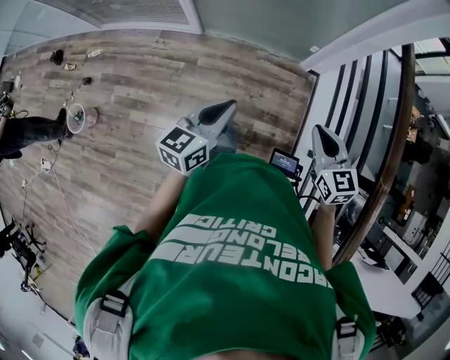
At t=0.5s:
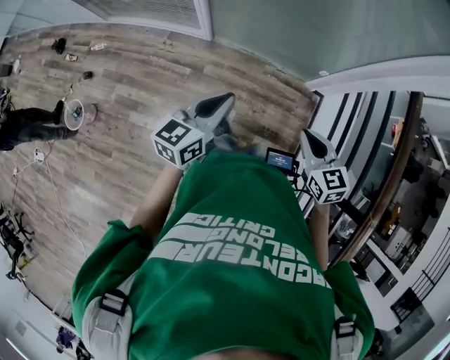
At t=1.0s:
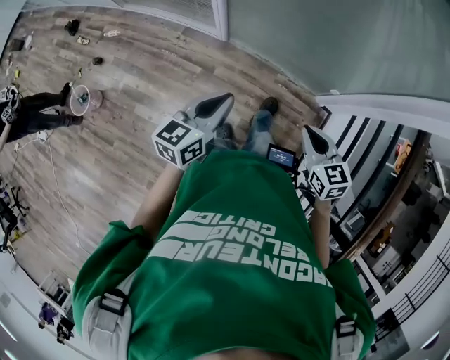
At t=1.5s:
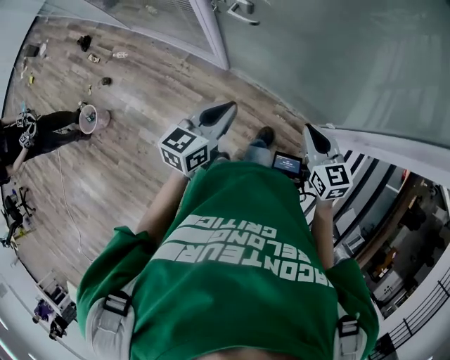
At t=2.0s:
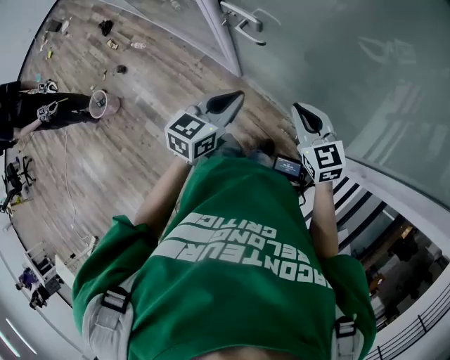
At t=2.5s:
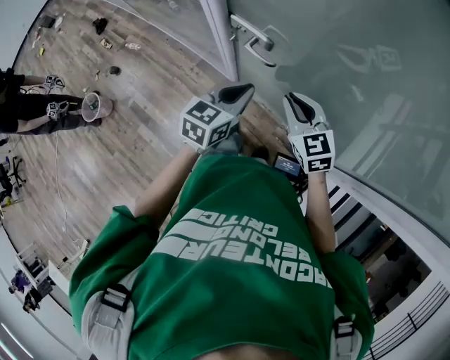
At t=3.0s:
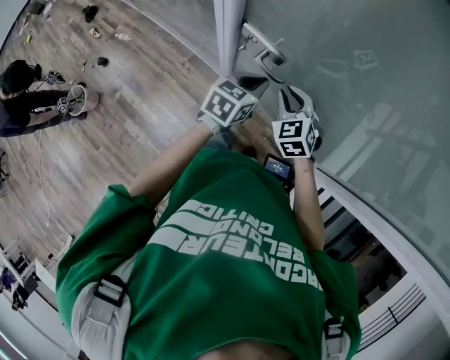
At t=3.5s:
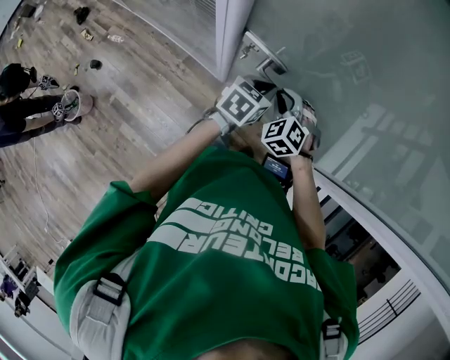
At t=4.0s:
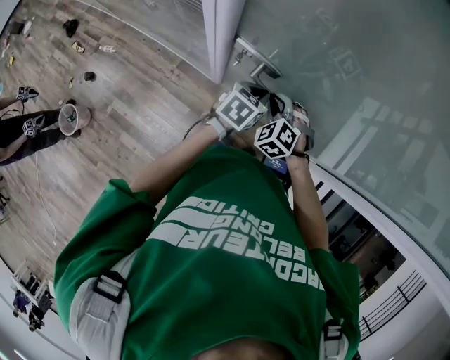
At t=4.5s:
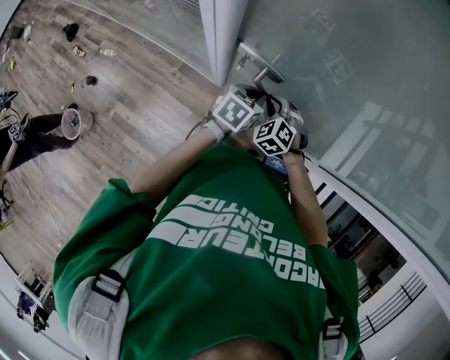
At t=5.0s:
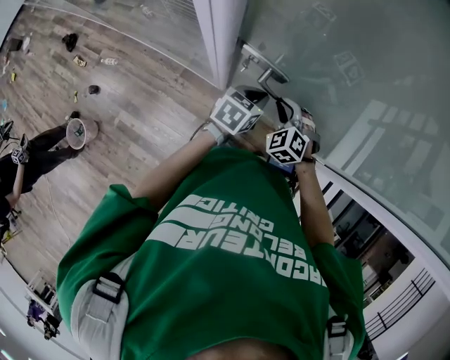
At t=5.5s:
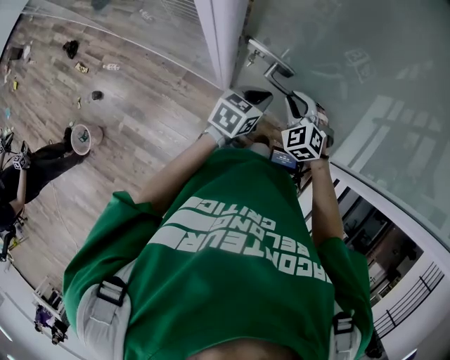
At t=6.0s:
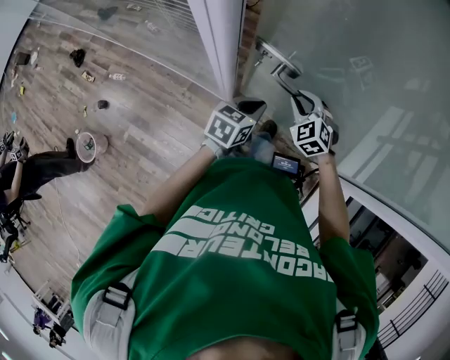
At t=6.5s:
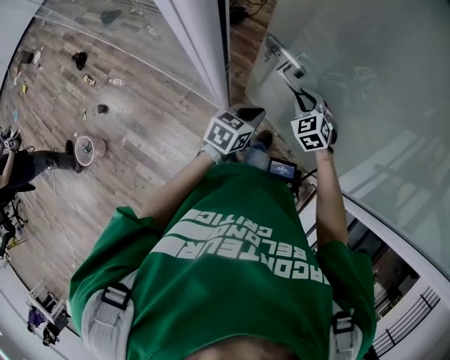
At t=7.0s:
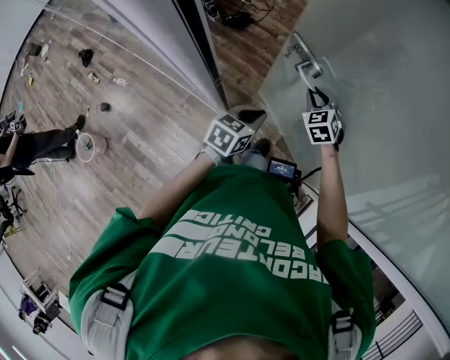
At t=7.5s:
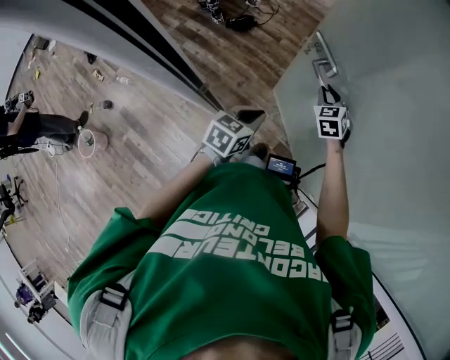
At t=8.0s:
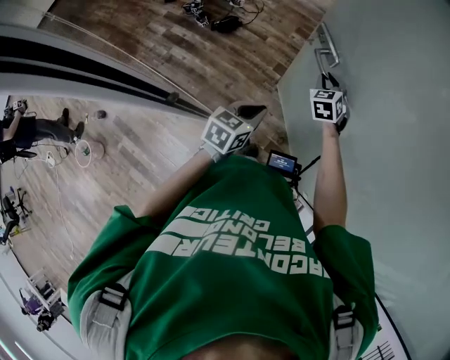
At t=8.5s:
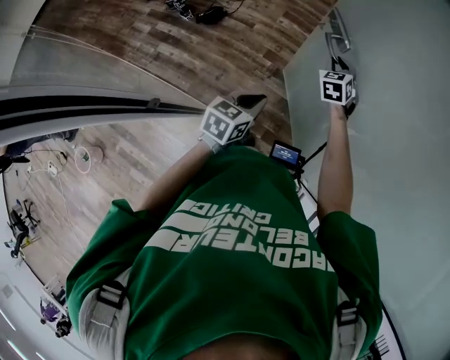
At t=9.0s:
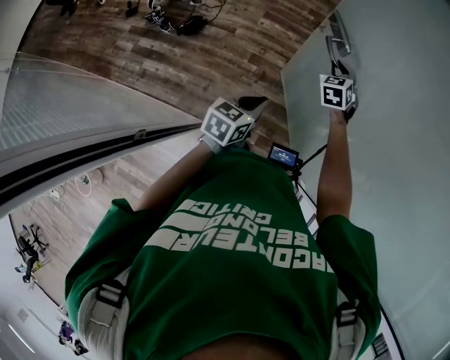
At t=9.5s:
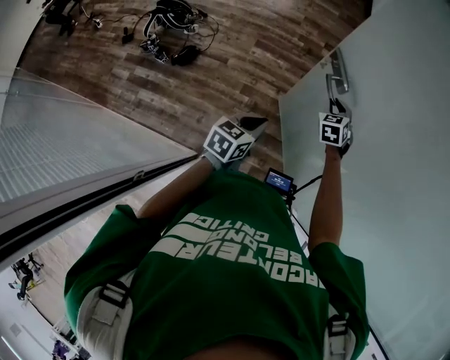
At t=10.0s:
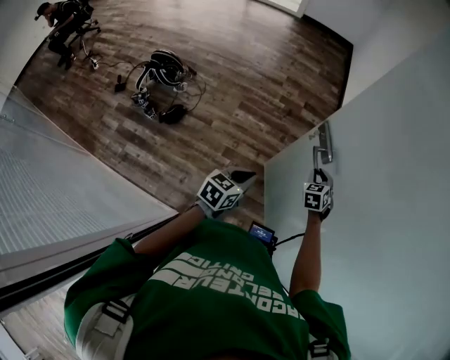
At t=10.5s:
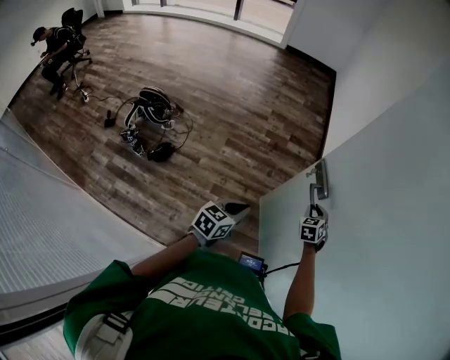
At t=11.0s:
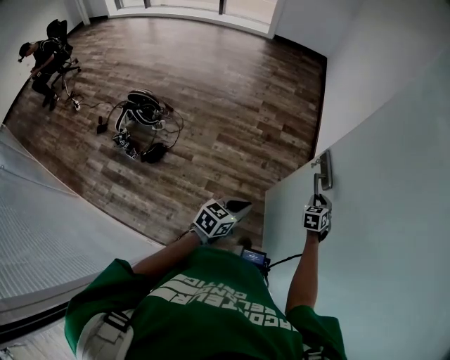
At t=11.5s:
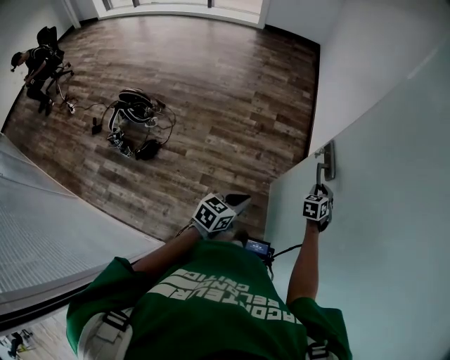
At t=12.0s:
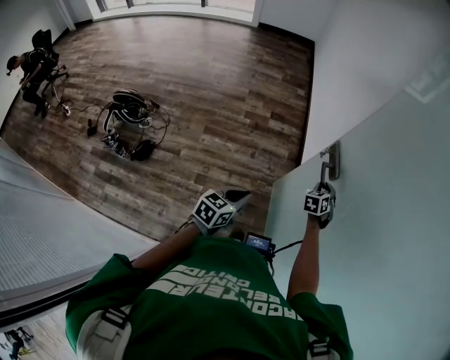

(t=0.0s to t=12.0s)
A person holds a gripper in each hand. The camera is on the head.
t=0.0s - t=2.0s: Both grippers are carried about 50 cm. The left gripper turns by about 20 degrees. Meanwhile the right gripper swivels some 40 degrees.
t=2.0s - t=4.0s: The left gripper changes place by approximately 20 cm, and changes its angle by some 30 degrees. The right gripper moves some 25 cm, and changes its angle by roughly 50 degrees.
t=4.0s - t=6.0s: The right gripper goes approximately 10 cm forward.
t=6.0s - t=8.0s: The right gripper is displaced forward and to the right by some 35 cm, and swivels approximately 30 degrees; the left gripper moves forward and to the right, roughly 20 cm.
t=8.0s - t=10.0s: The left gripper shifts by roughly 10 cm, and changes its angle by roughly 20 degrees. The right gripper moves about 15 cm, and swivels some 30 degrees.
t=10.0s - t=12.0s: The two grippers go about 20 cm forward and to the right. The right gripper rotates approximately 20 degrees.

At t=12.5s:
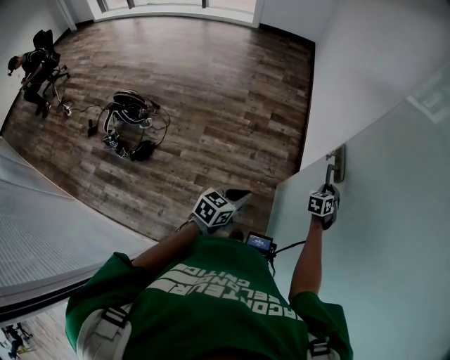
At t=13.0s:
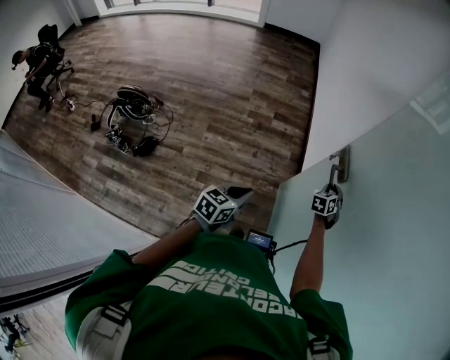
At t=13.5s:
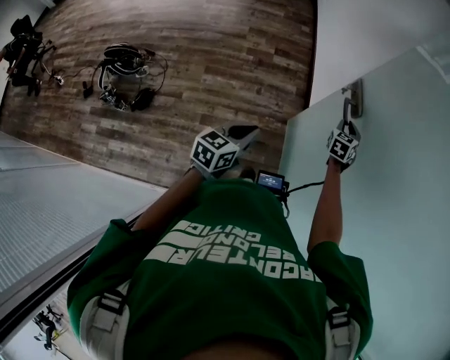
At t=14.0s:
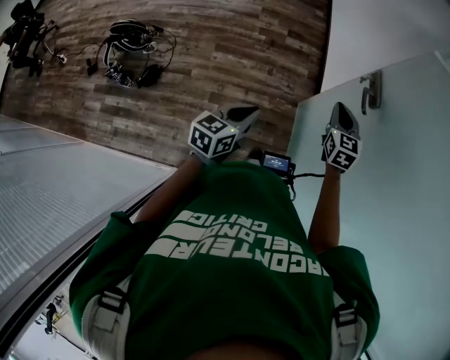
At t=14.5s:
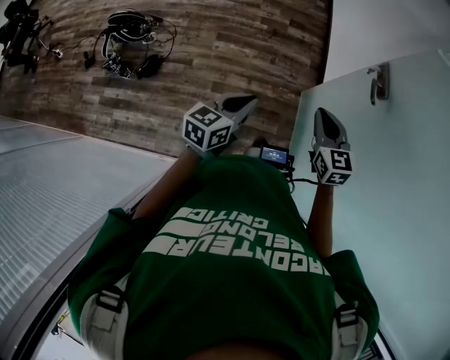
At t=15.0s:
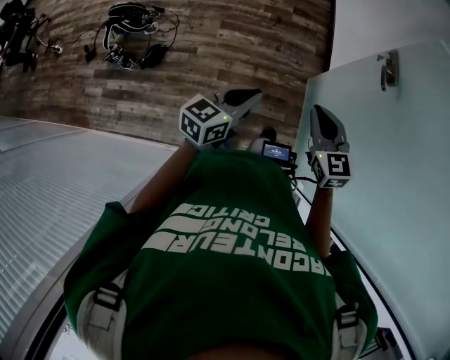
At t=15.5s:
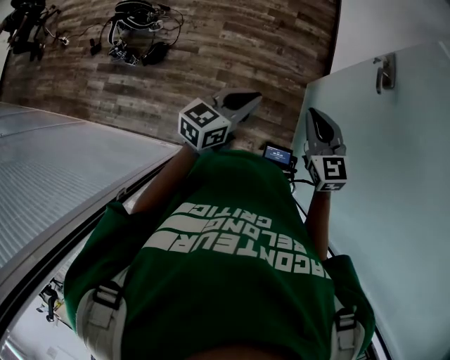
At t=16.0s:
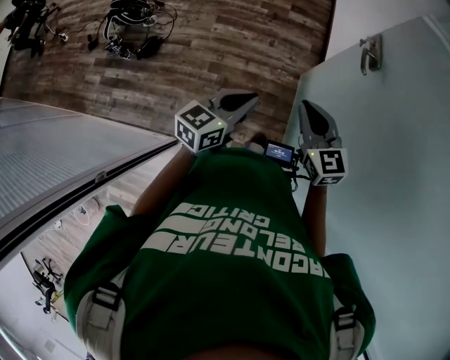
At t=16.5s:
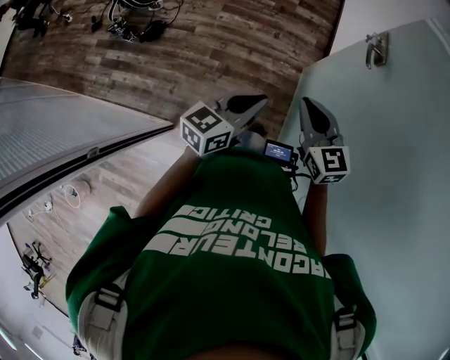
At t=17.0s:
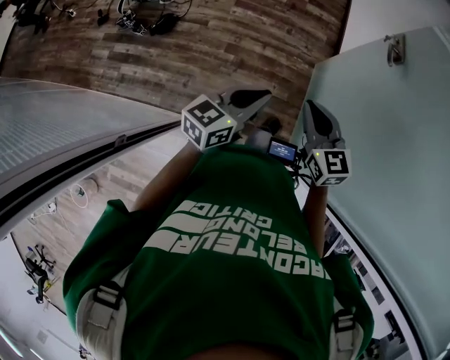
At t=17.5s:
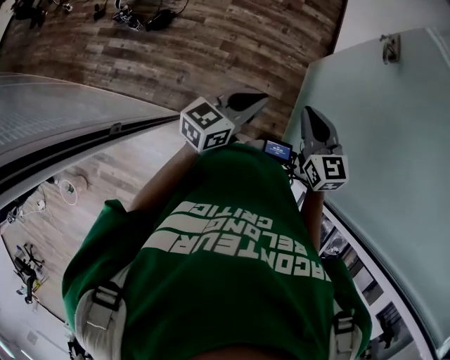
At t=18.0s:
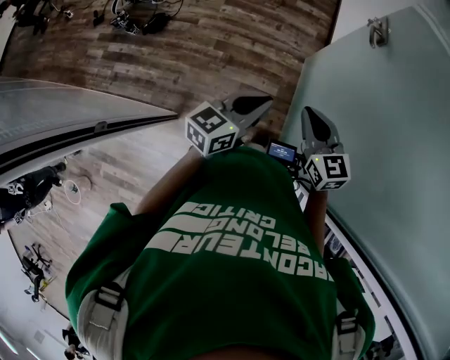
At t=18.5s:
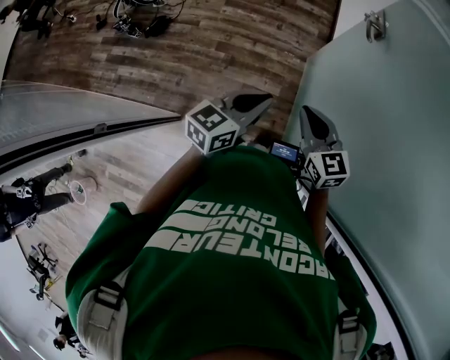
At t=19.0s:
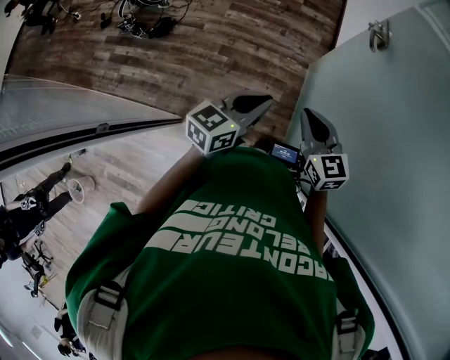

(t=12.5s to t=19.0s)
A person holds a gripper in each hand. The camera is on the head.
t=12.5s - t=14.5s: The right gripper changes place by approximately 35 cm, and changes its angle by approximately 50 degrees. The left gripper shifts by some 15 cm.
t=14.5s - t=17.0s: Both grippers travel together backward, roughly 20 cm.
t=17.0s - t=19.0s: The grippers both shift to the right by approximately 10 cm.

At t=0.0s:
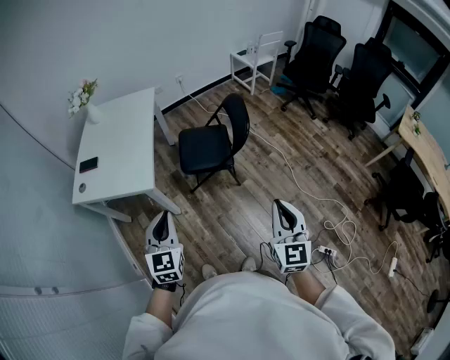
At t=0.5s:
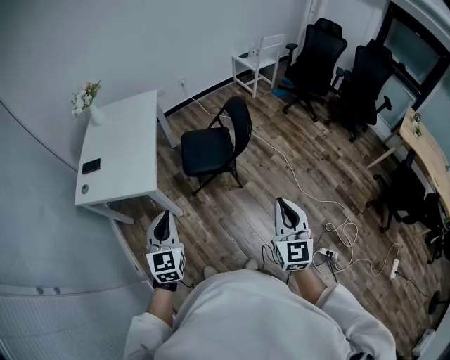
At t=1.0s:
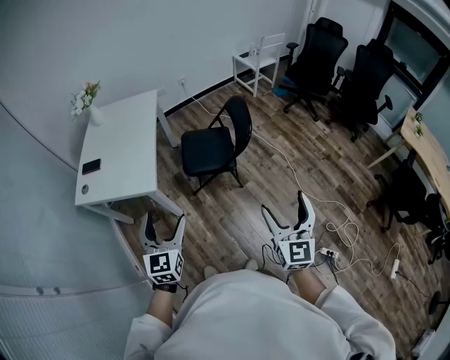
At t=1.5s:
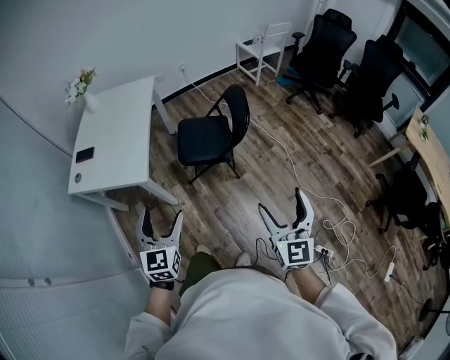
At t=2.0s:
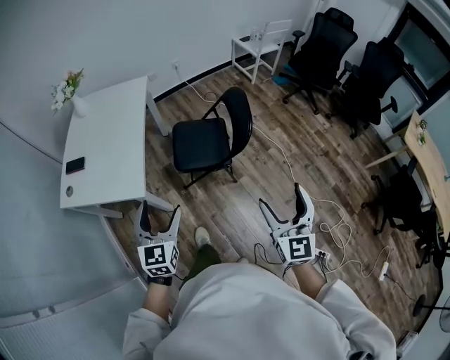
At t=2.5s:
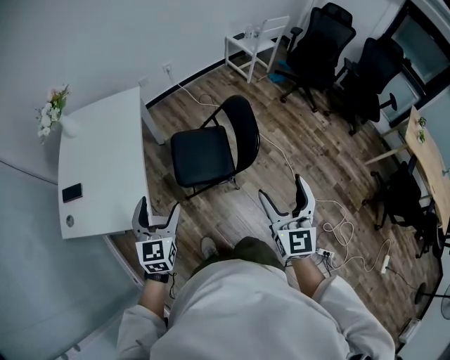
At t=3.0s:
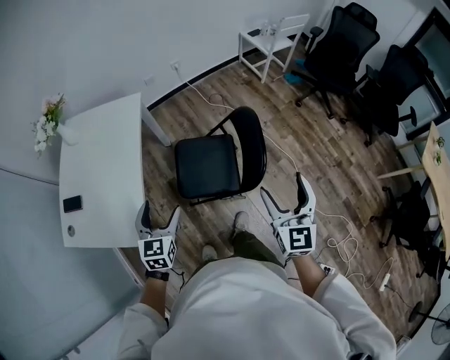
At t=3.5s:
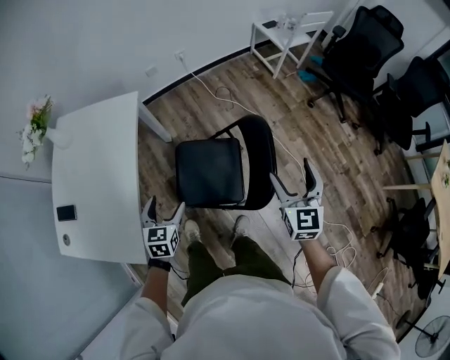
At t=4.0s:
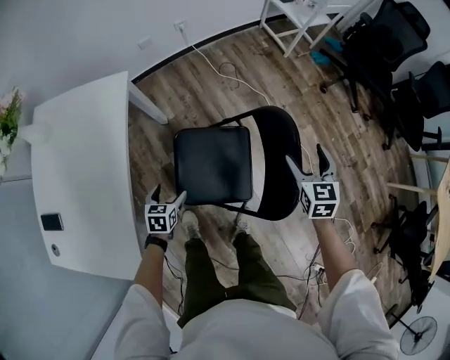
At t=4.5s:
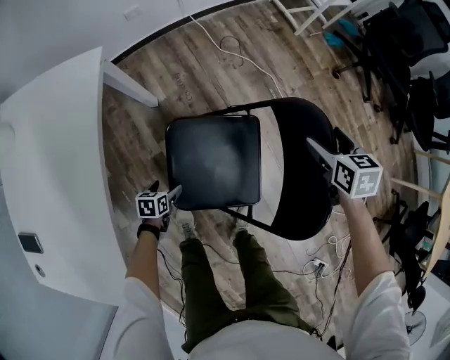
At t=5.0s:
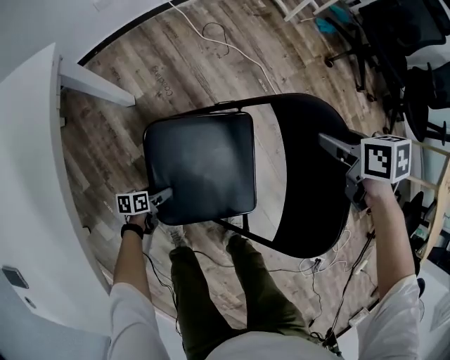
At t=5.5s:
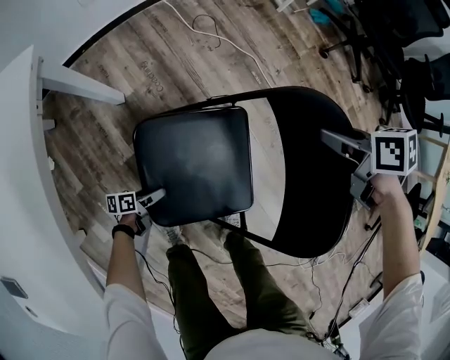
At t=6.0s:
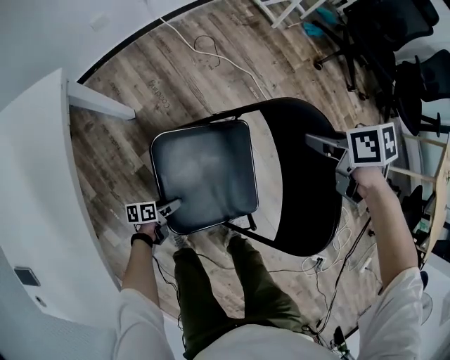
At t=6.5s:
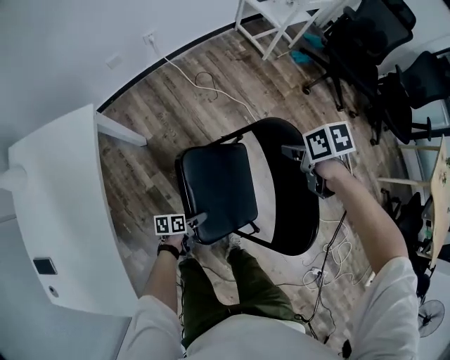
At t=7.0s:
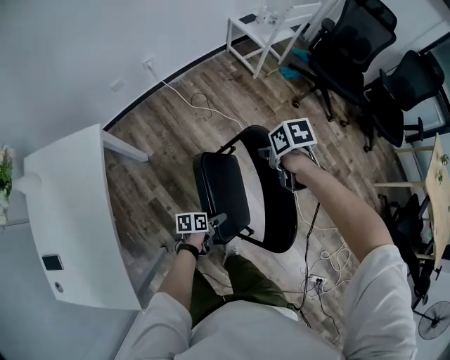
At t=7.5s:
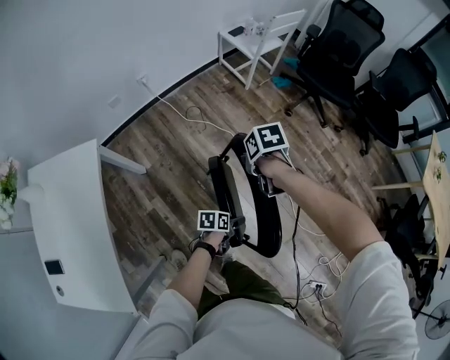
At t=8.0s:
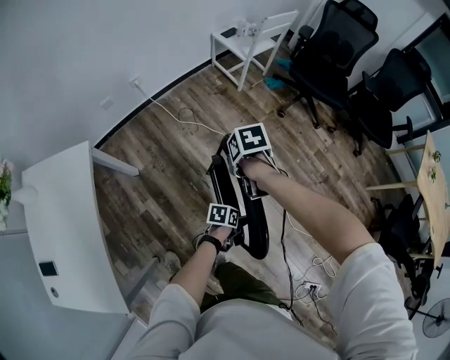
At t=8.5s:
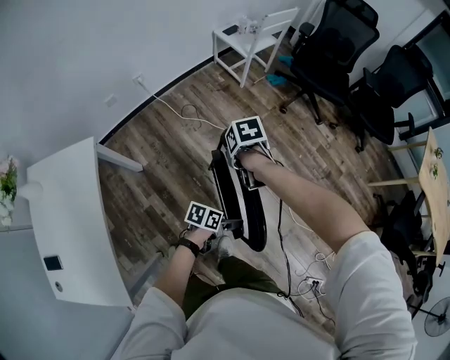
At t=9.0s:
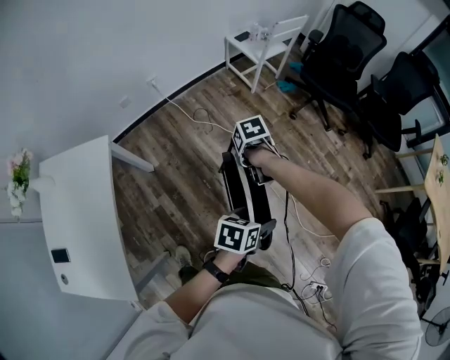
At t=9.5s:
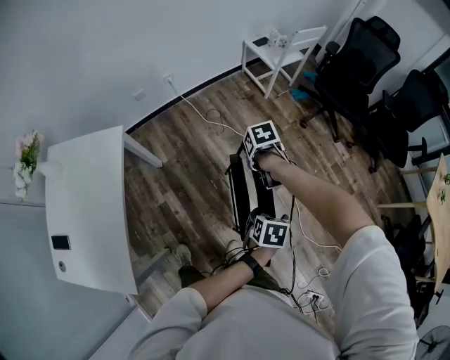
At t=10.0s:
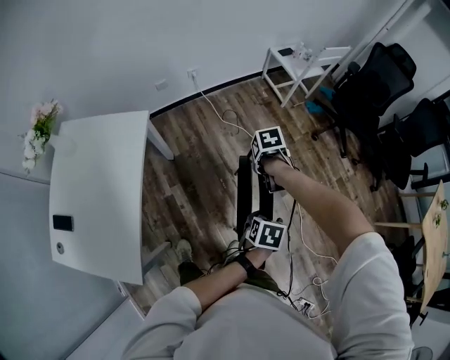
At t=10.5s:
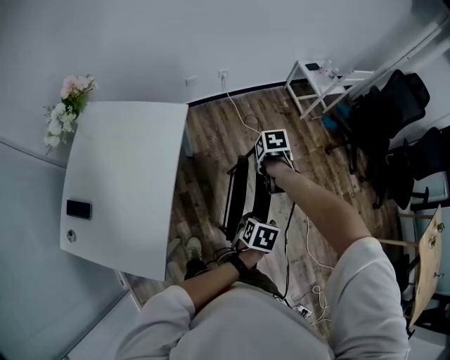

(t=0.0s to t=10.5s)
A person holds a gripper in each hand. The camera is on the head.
t=0.0s - t=2.0s: Both grippers travel together forward, approximately 15 cm. The left gripper opens. Meanwhile the right gripper opens up.
t=2.0s - t=4.0s: The two grippers travel together, forward, roughly 60 cm. The right gripper is displaced downward by about 25 cm, and tilts its fingers roughly 30 degrees downward; the left gripper goes about 40 cm downward, and tilts its fingers some 40 degrees downward.
t=4.0s - t=6.5s: The left gripper heads downward, covering roughly 15 cm, and changes its angle by roughly 50 degrees. Meanwhile the right gripper travels downward and back again, approximately 20 cm each way, rotates roughly 50 degrees, and closes up.
t=6.5s - t=8.5s: The right gripper heads upward, covering approximately 5 cm. Meanwhile the left gripper changes place by roughly 35 cm, and changes its angle by roughly 30 degrees.
t=8.5s - t=10.5s: The right gripper shifts by about 25 cm, while the left gripper changes place by about 25 cm, changes its angle by about 40 degrees, and closes its fingers.
